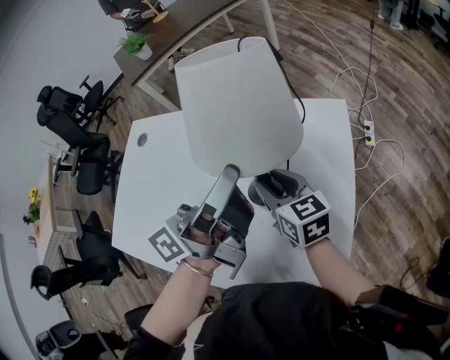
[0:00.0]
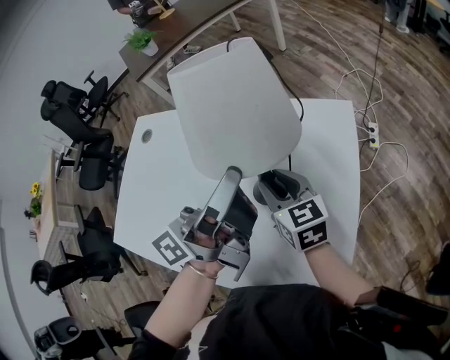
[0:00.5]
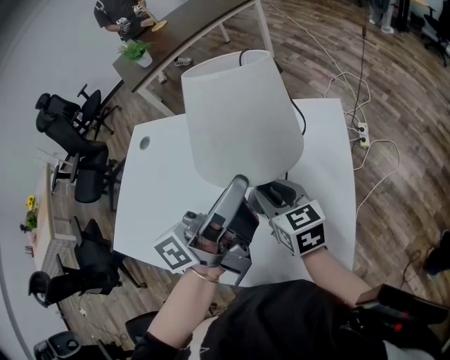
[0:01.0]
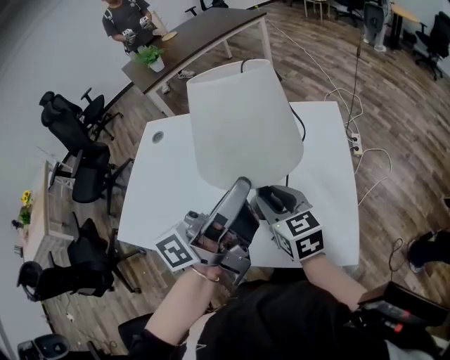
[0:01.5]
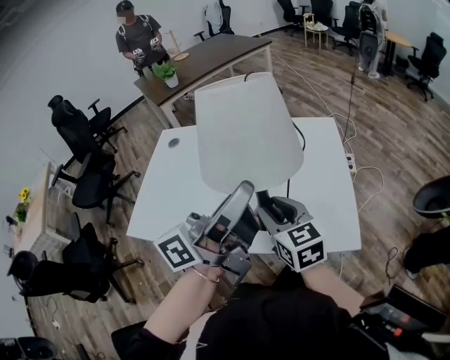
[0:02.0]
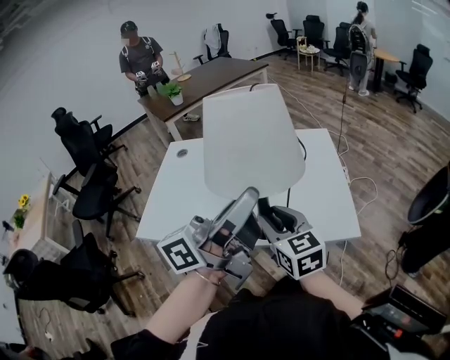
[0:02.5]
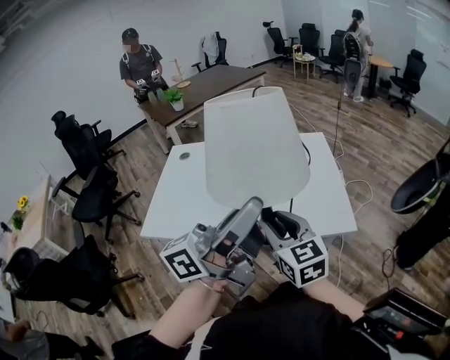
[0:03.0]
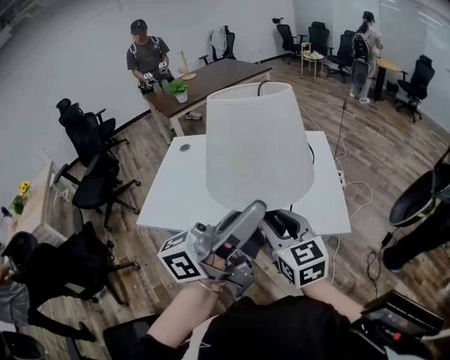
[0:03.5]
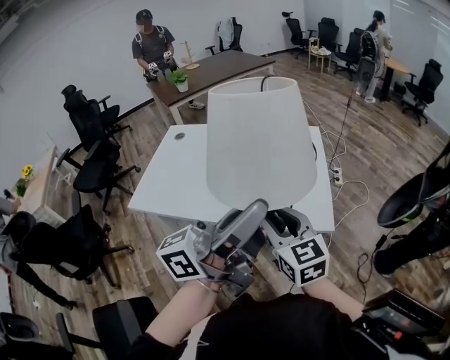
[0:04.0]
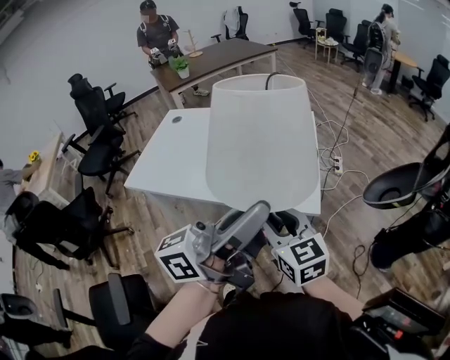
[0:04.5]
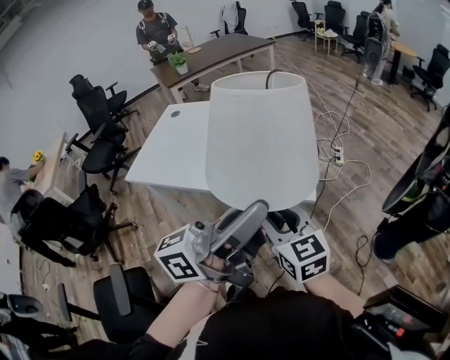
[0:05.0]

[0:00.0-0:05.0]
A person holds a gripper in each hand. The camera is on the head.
0:00.0 to 0:02.5: The grippers both shift backward by some 30 cm. The right gripper swivels some 20 degrees, while the left gripper swivels approximately 20 degrees.
0:02.5 to 0:05.0: The grippers both shift to the right and backward by some 25 cm.

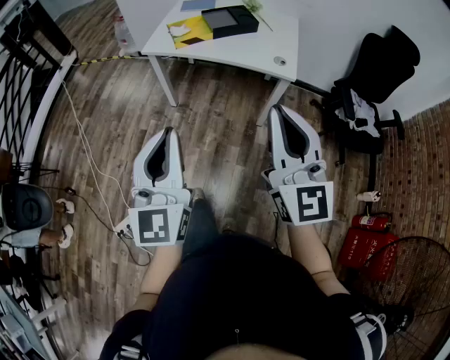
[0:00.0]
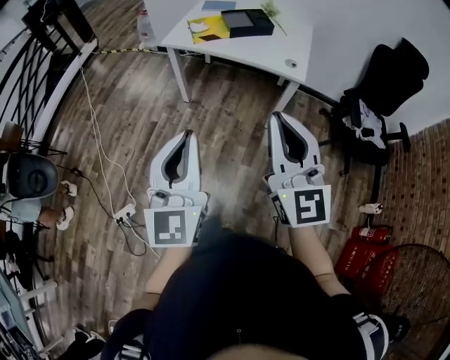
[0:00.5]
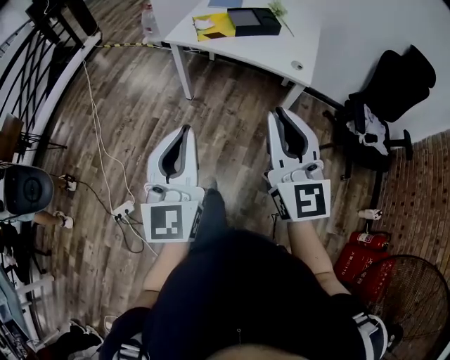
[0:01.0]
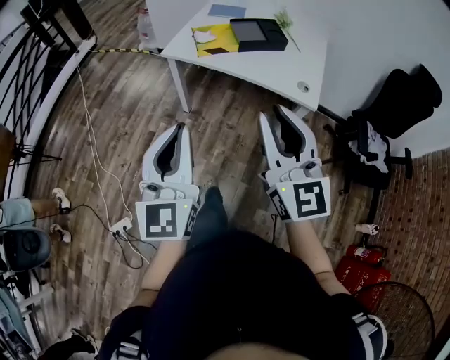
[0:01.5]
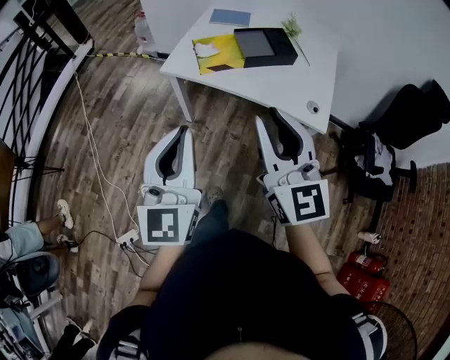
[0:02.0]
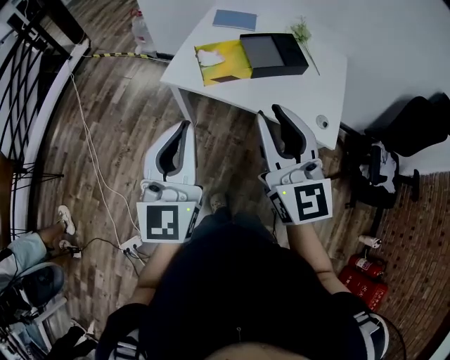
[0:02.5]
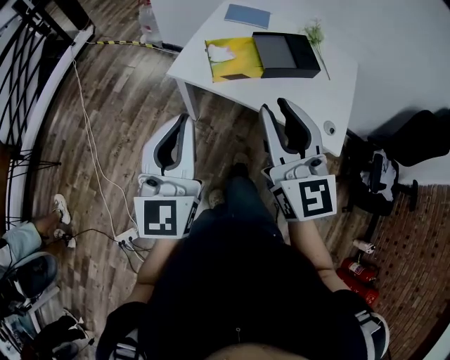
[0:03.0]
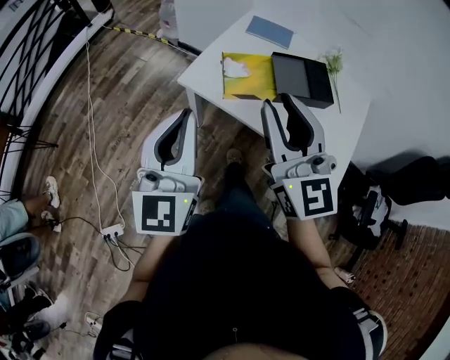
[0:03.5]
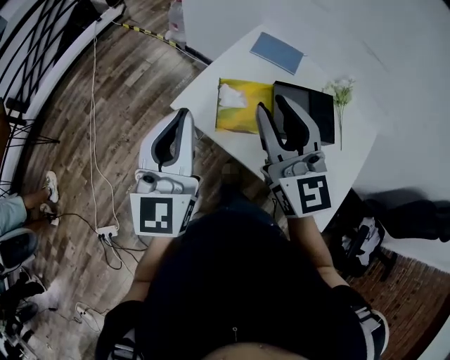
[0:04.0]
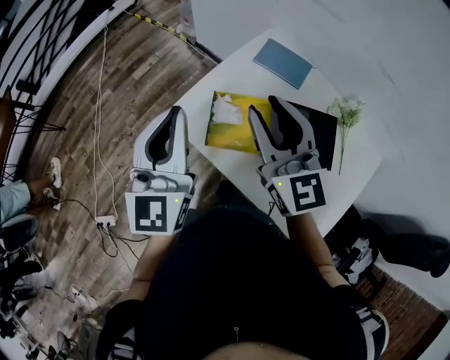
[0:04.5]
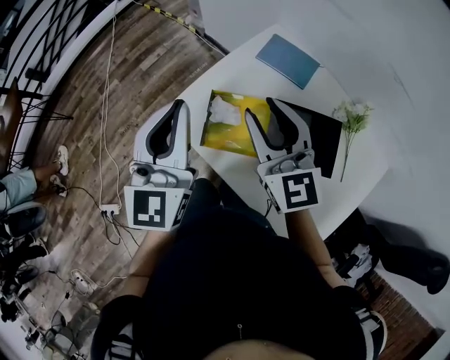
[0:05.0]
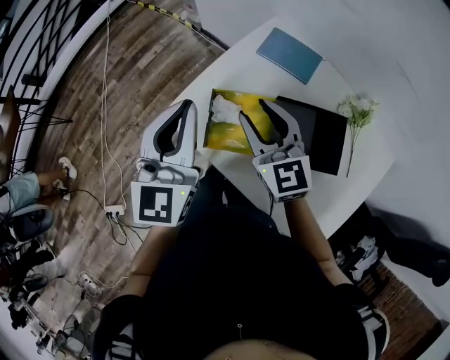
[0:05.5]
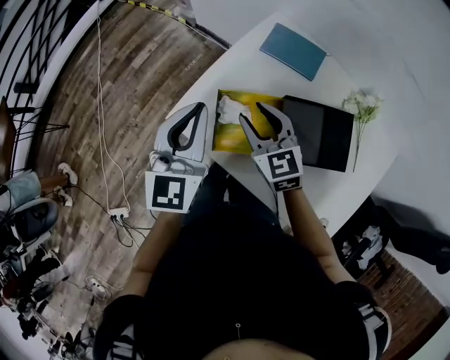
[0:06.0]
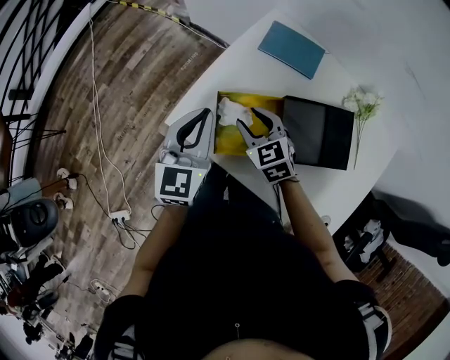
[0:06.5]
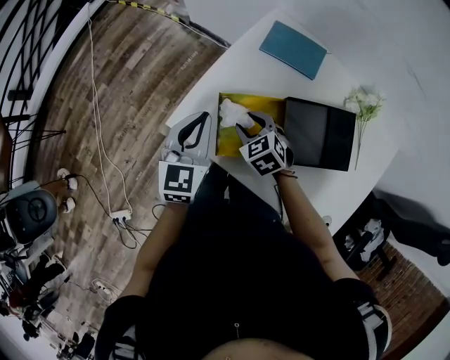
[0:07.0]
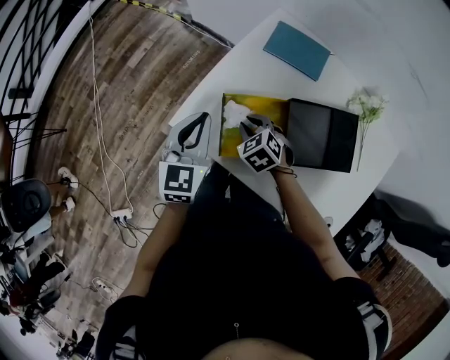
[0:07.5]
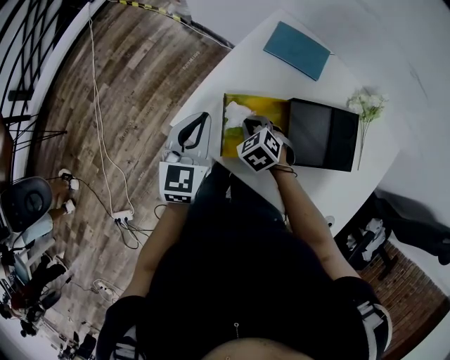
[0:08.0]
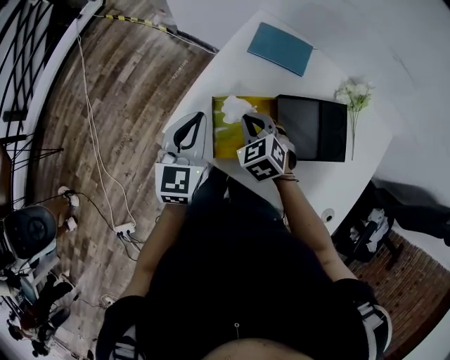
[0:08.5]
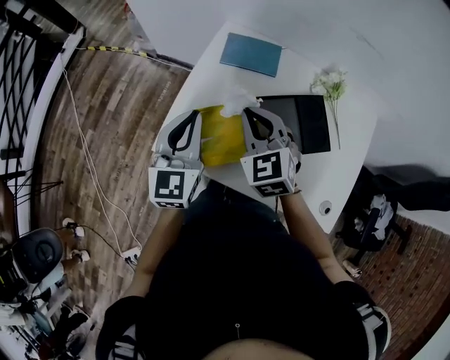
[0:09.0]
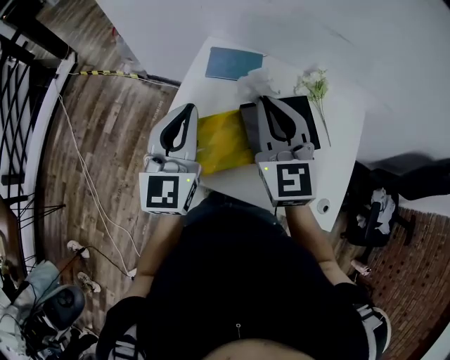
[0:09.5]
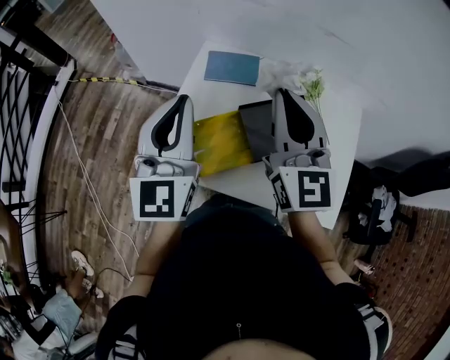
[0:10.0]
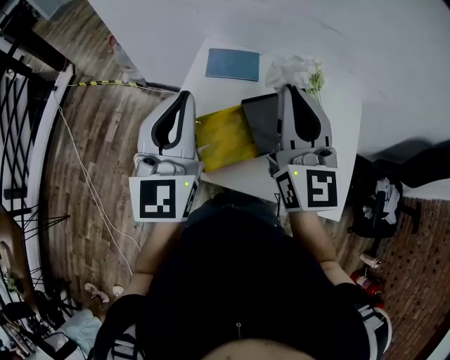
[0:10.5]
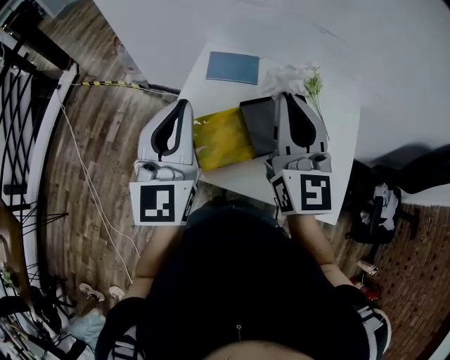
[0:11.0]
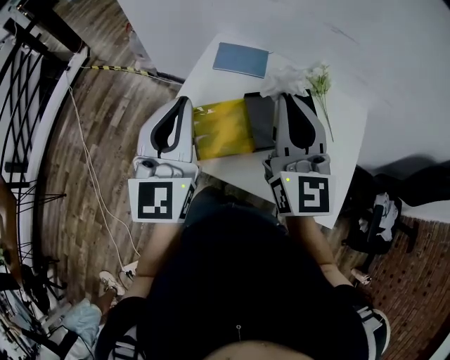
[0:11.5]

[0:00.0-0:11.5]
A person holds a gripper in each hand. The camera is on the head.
0:00.0 to 0:02.0: Both grippers travel together forward, roughly 25 cm.
0:02.0 to 0:04.0: The grippers both shift forward by roughly 35 cm.
0:04.0 to 0:06.0: The left gripper shifts about 20 cm forward, downward and to the right. The right gripper travels downward and forward by about 25 cm, and rotates some 30 degrees.
0:06.0 to 0:07.5: The right gripper moves downward, roughly 15 cm, and tilts its fingers some 30 degrees downward, while the left gripper is displaced downward by about 10 cm.
0:07.5 to 0:09.5: The right gripper travels upward by approximately 35 cm, and tilts its fingers approximately 50 degrees upward. Meanwhile the left gripper is displaced upward and to the right by some 20 cm, and swivels some 20 degrees.
0:09.5 to 0:11.5: The grippers both shift backward and upward by approximately 10 cm.

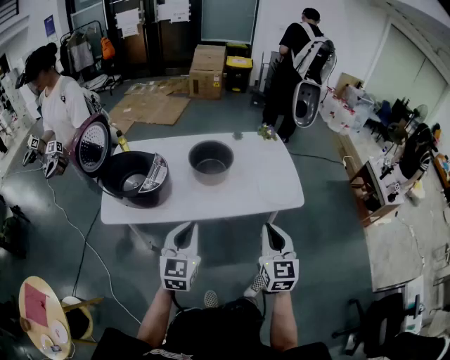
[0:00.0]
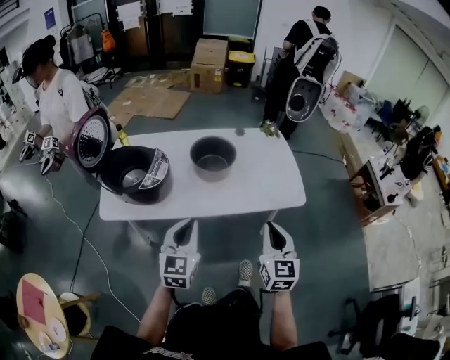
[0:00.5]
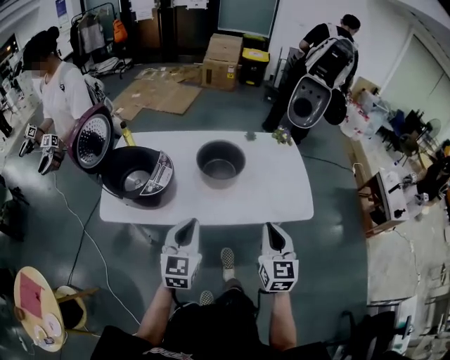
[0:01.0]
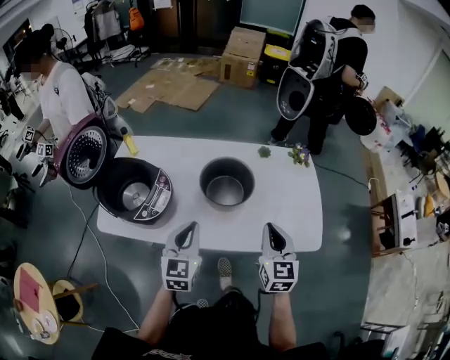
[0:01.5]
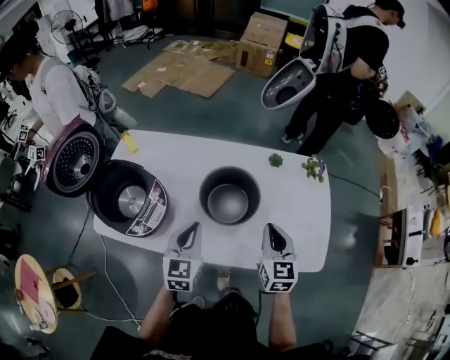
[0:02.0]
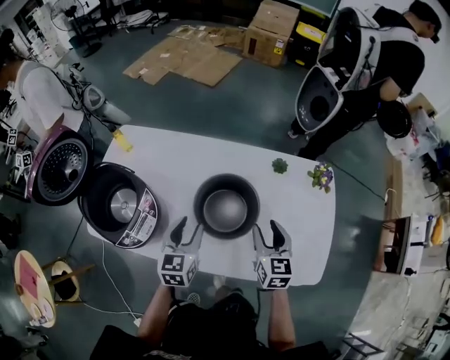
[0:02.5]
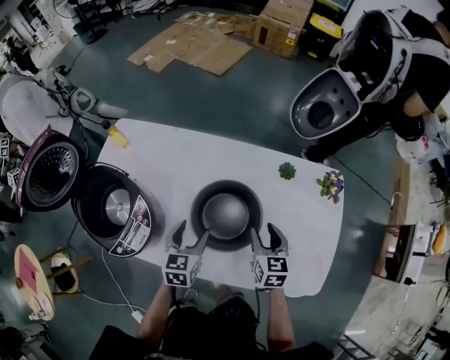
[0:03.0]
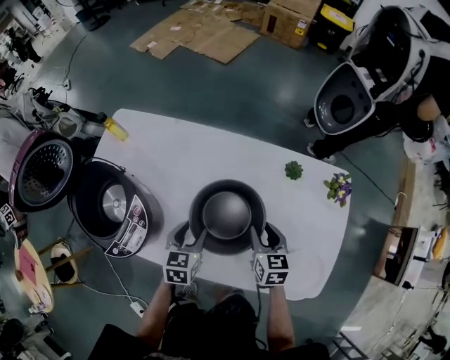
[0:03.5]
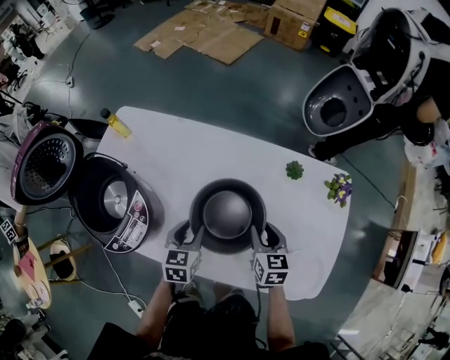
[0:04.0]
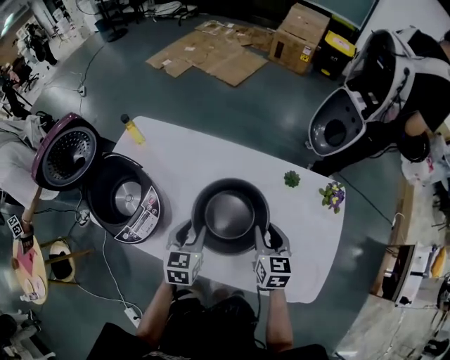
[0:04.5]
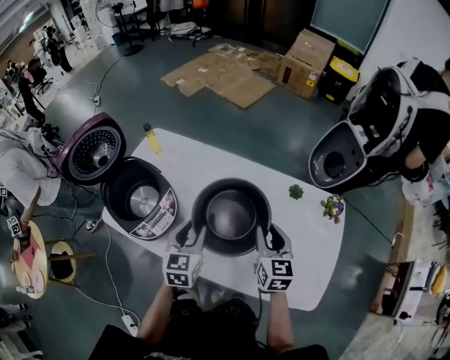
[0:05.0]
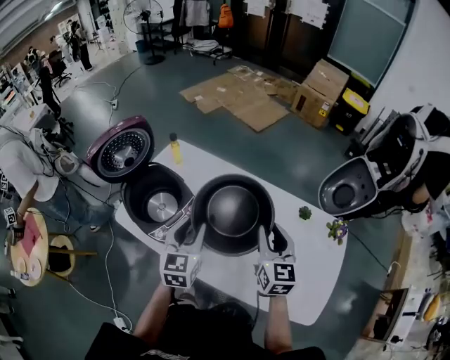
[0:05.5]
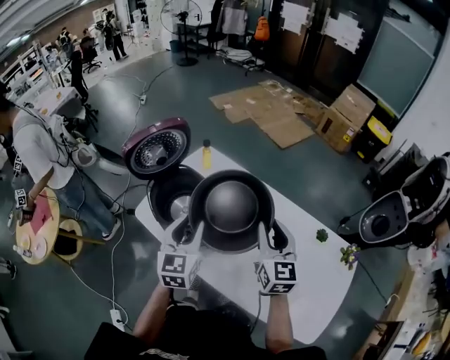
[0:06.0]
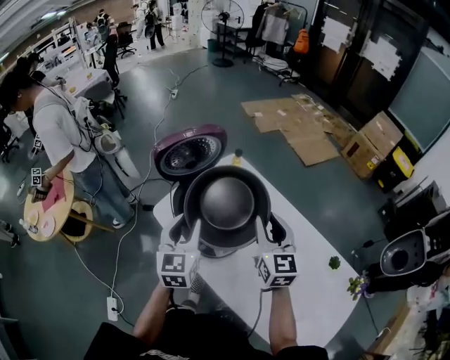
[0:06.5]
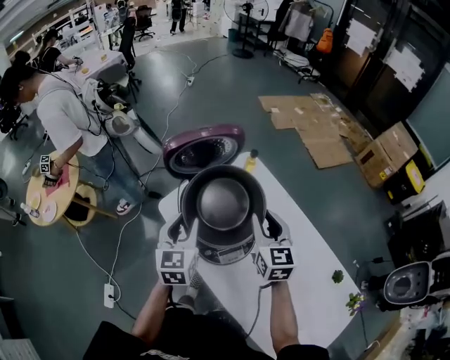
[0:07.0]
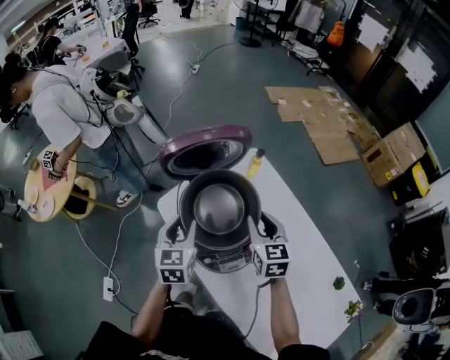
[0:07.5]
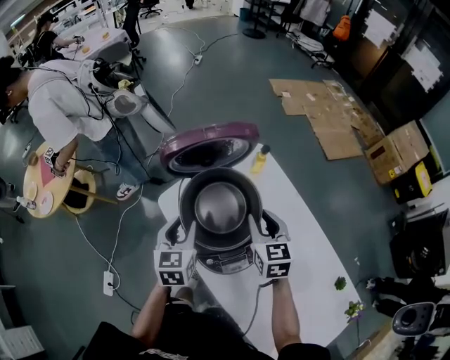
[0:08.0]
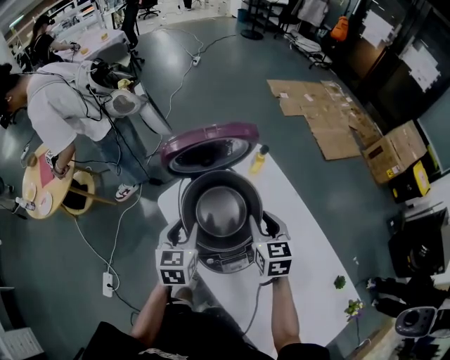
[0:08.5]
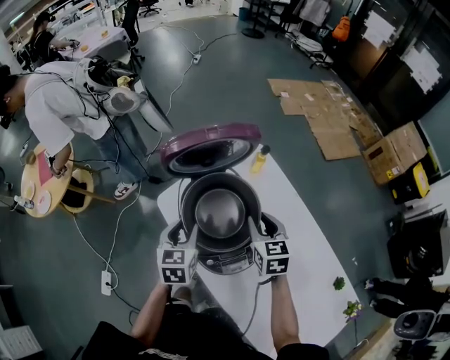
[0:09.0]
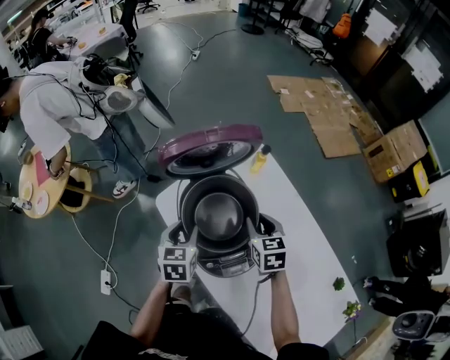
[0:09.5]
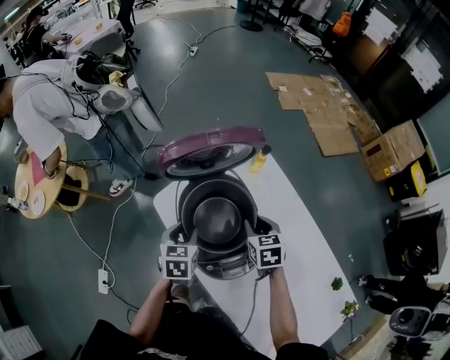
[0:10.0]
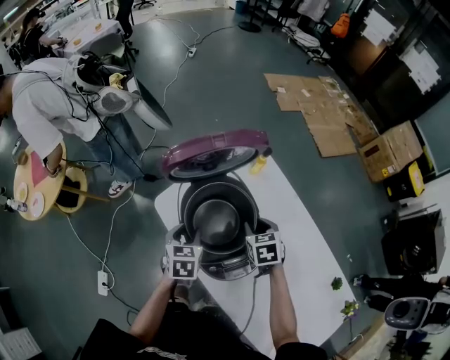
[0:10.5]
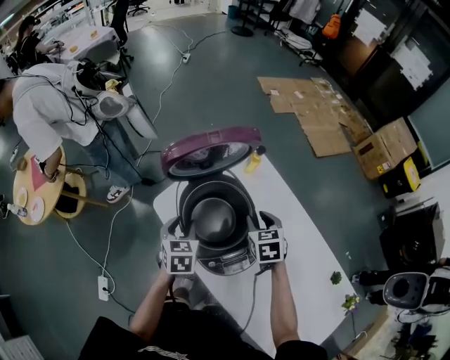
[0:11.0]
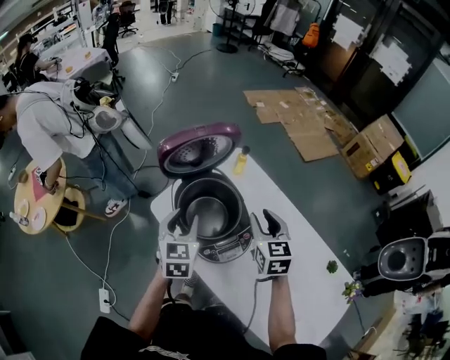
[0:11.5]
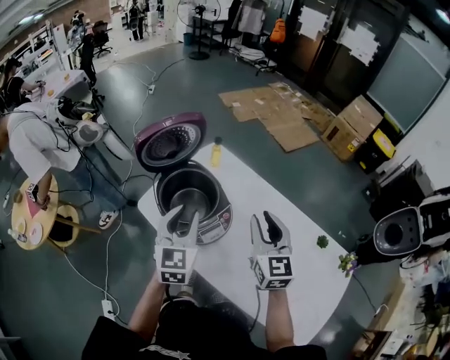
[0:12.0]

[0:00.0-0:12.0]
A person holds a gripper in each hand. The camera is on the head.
0:00.0 to 0:02.0: The grippers both shift forward by about 30 cm.
0:02.0 to 0:04.0: Both grippers travel together downward and forward, roughly 20 cm. The right gripper turns by roughly 20 degrees, and opens up, while the left gripper swivels about 20 degrees, and opens its fingers.
0:04.0 to 0:06.0: The grippers both shift upward and to the left by about 30 cm. The left gripper changes its angle by roughly 40 degrees. Meanwhile the right gripper tilts its fingers roughly 30 degrees upward.
0:06.0 to 0:08.0: The right gripper moves roughly 25 cm, and rotates some 30 degrees, while the left gripper ends up about 20 cm from where it was, and rotates some 30 degrees.
0:08.0 to 0:10.0: Both grippers travel together downward, roughly 10 cm.
0:10.0 to 0:12.0: The left gripper heads upward, to the right and backward, covering about 25 cm, and tips its fingers upward by some 30 degrees. Meanwhile the right gripper travels upward and backward by about 25 cm, and angles its fingers upward, by some 40 degrees.
